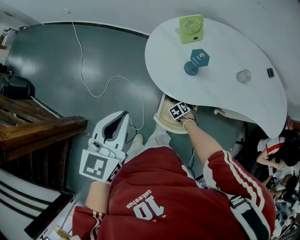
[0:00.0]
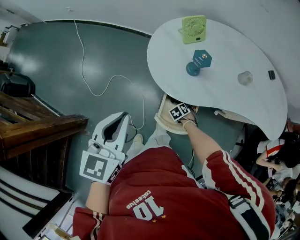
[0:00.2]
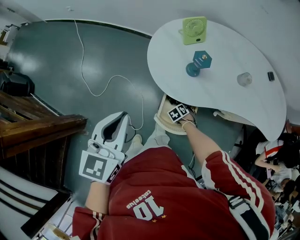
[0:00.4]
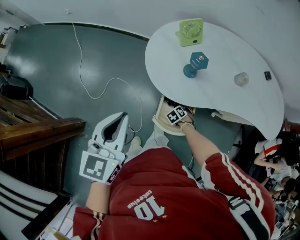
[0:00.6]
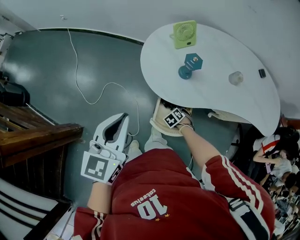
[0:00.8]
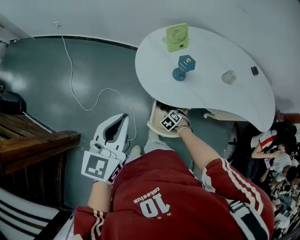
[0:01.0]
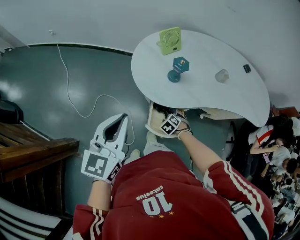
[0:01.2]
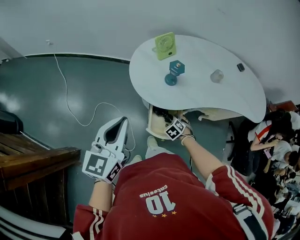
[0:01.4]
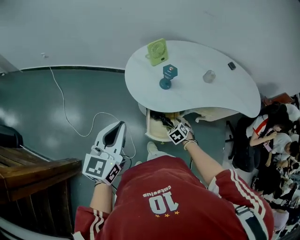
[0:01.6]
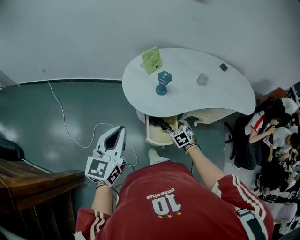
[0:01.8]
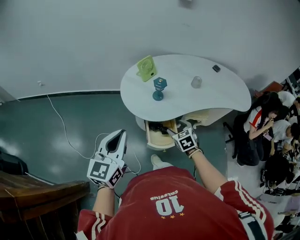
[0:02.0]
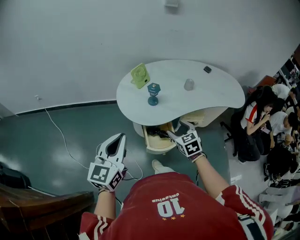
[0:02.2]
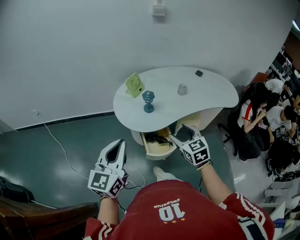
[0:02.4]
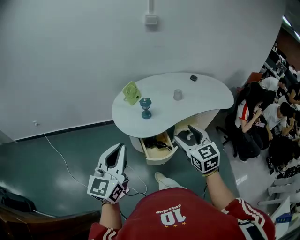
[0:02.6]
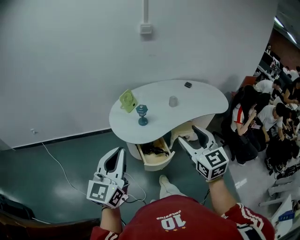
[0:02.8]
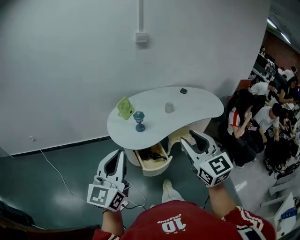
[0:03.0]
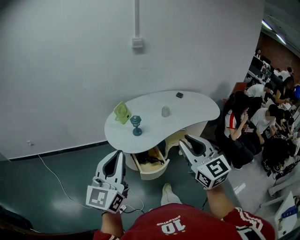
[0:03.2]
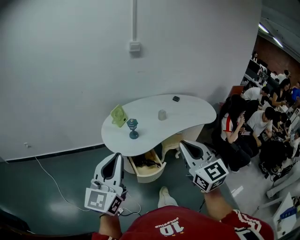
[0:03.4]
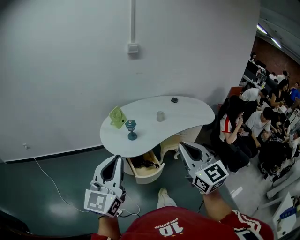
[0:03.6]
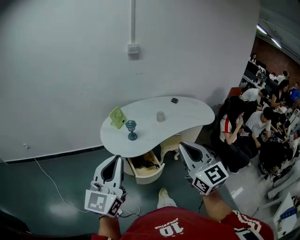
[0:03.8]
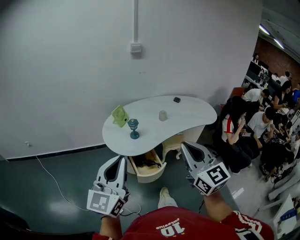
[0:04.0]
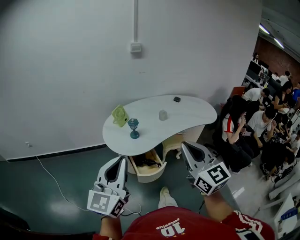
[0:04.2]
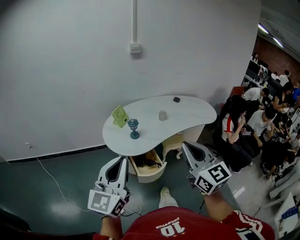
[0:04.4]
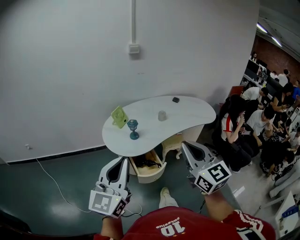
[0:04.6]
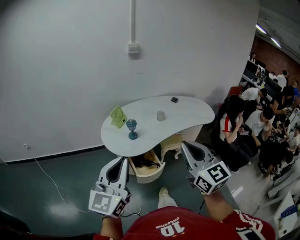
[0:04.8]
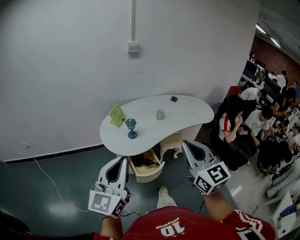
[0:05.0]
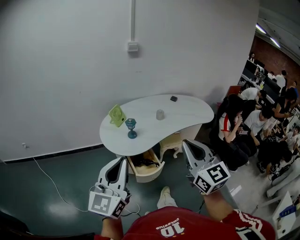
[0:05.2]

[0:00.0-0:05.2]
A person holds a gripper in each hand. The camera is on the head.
0:00.0 to 0:01.8: The right gripper goes roughly 25 cm upward, and turns by some 30 degrees.
0:01.8 to 0:03.4: The left gripper shifts about 20 cm upward and backward, and rotates about 30 degrees, while the right gripper travels upward and backward by some 50 cm, tips its fingers upward by about 60 degrees, and closes its fingers.
0:03.4 to 0:05.2: There are only small adjustments of the grippers.

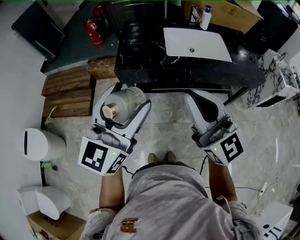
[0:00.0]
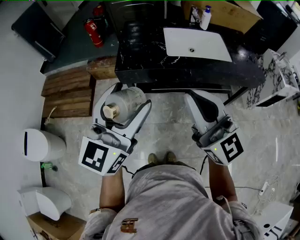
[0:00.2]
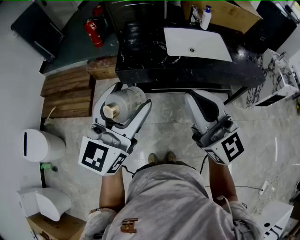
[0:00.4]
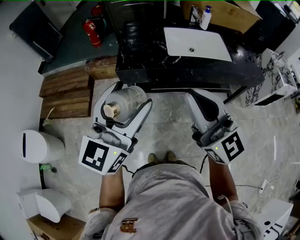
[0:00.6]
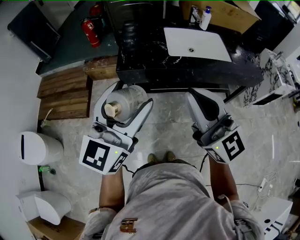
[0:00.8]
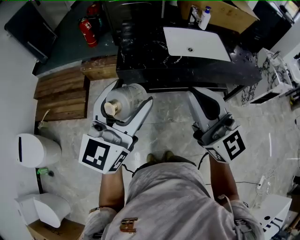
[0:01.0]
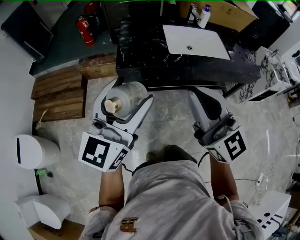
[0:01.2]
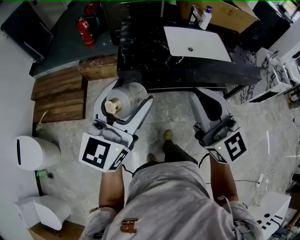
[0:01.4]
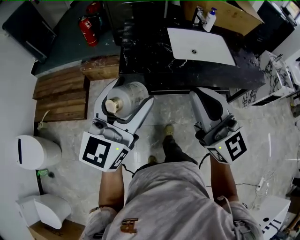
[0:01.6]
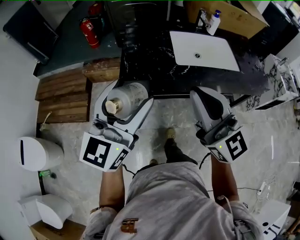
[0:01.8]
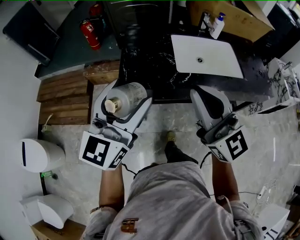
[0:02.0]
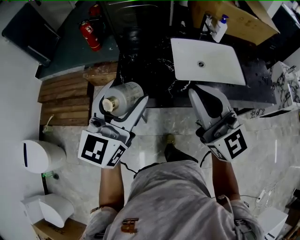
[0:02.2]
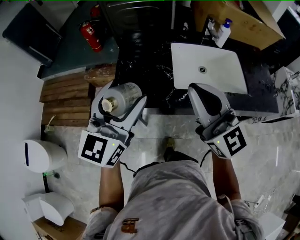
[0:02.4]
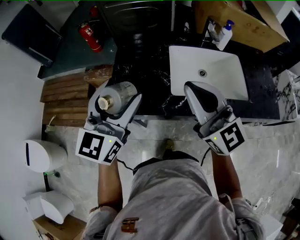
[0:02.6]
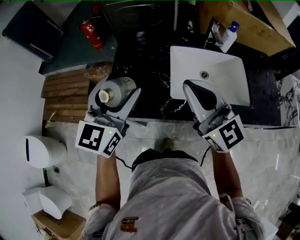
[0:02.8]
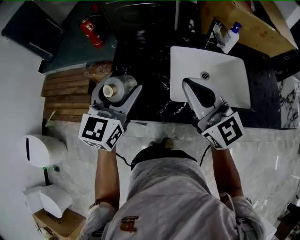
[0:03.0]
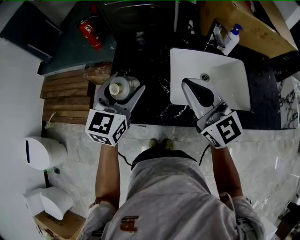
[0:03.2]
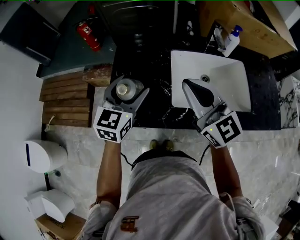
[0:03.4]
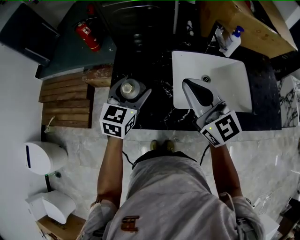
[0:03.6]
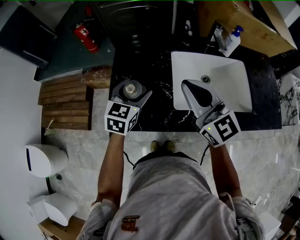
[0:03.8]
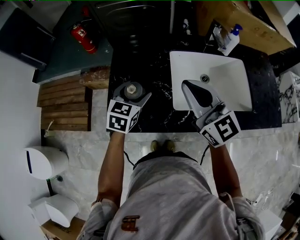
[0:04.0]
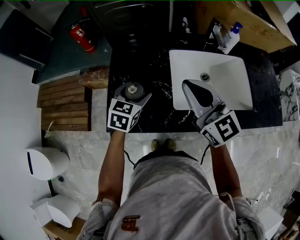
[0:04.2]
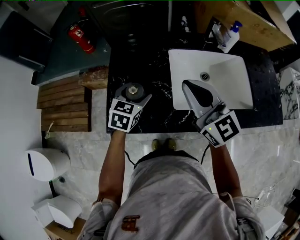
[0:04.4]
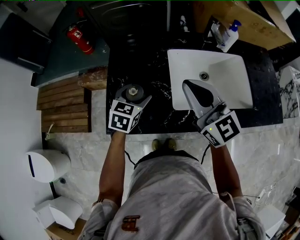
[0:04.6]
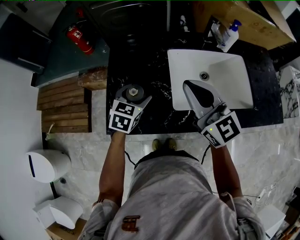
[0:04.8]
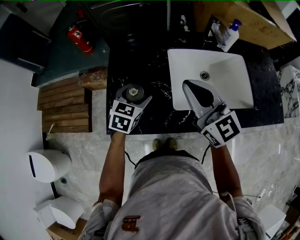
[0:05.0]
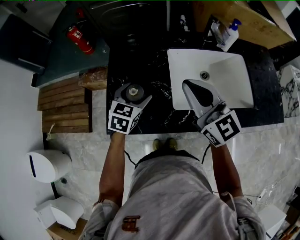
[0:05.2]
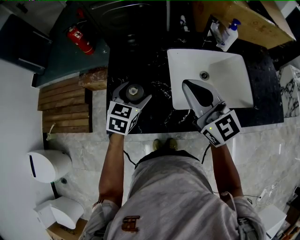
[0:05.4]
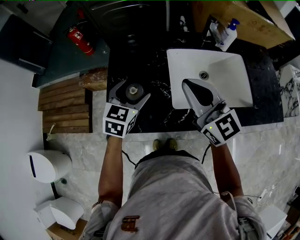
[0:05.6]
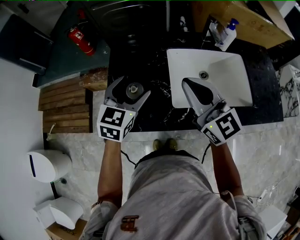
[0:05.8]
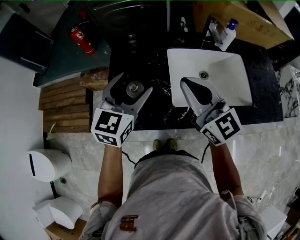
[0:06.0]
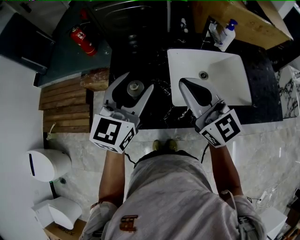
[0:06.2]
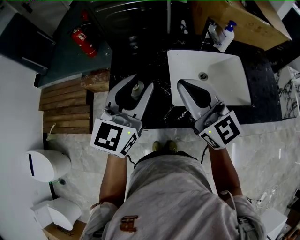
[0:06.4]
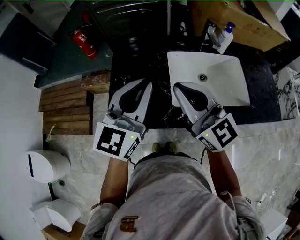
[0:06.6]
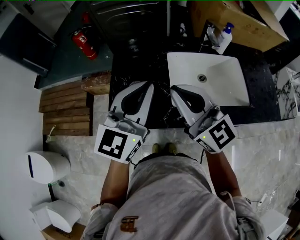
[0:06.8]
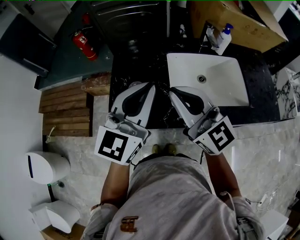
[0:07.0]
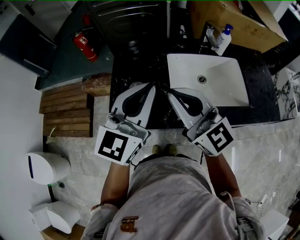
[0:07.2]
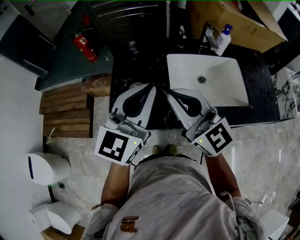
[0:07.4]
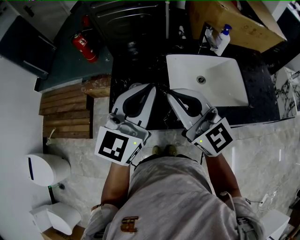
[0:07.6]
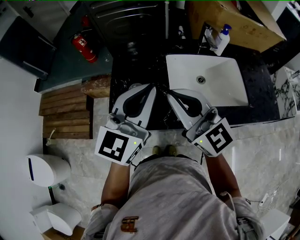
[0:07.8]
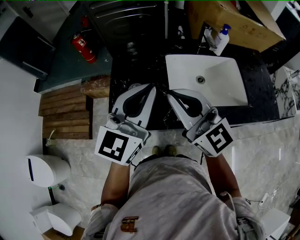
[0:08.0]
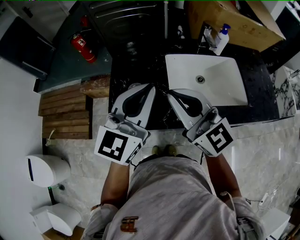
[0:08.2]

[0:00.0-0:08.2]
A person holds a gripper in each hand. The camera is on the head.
0:00.0 to 0:01.6: The right gripper heads to the left, covering roughly 5 cm; the left gripper moves to the left and forward, approximately 10 cm.
0:01.6 to 0:03.2: The grippers both shift forward by about 35 cm. The left gripper swivels some 20 degrees.
0:03.2 to 0:05.0: The right gripper shifts by about 5 cm. The left gripper goes about 15 cm downward, and rotates some 30 degrees.
0:05.0 to 0:06.6: The right gripper moves backward, roughly 5 cm. The left gripper moves upward, about 25 cm, angles its fingers upward, by approximately 40 degrees, and closes its fingers.
0:06.6 to 0:08.2: There are only small adjustments of the grippers.

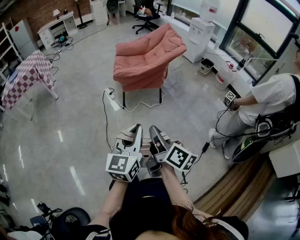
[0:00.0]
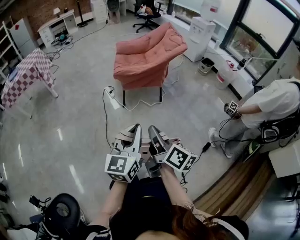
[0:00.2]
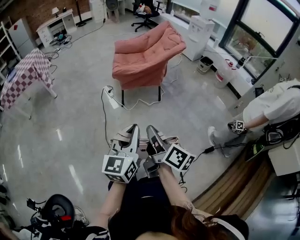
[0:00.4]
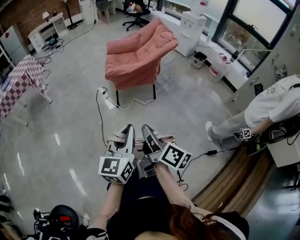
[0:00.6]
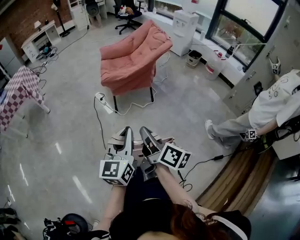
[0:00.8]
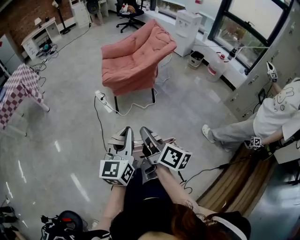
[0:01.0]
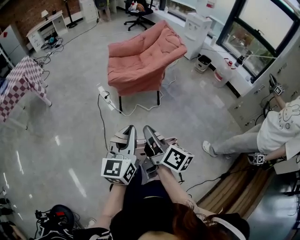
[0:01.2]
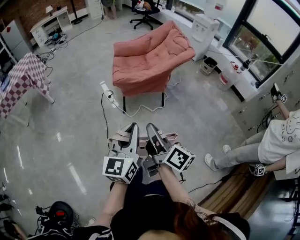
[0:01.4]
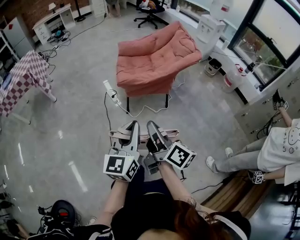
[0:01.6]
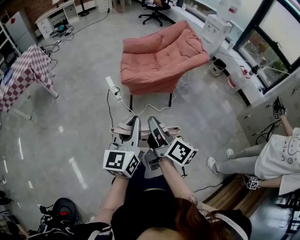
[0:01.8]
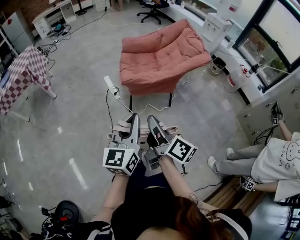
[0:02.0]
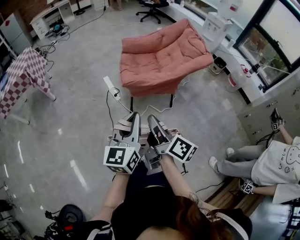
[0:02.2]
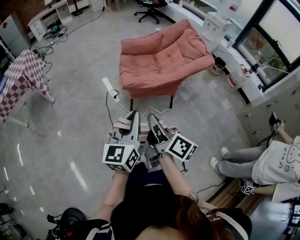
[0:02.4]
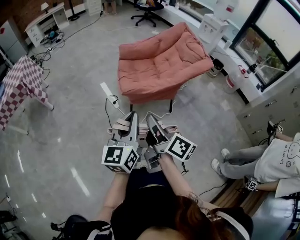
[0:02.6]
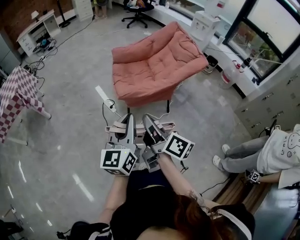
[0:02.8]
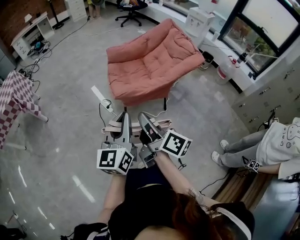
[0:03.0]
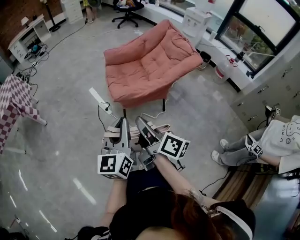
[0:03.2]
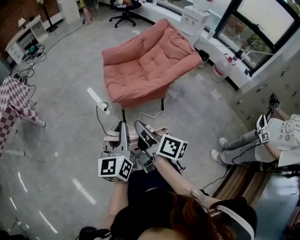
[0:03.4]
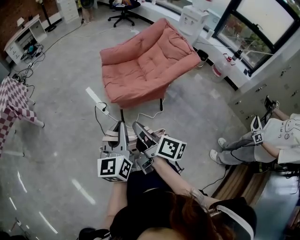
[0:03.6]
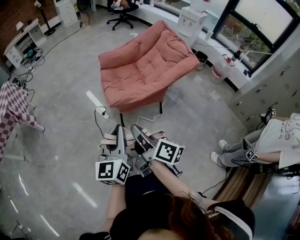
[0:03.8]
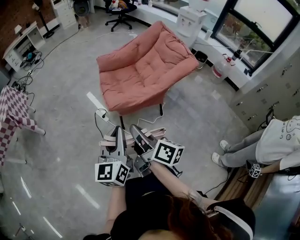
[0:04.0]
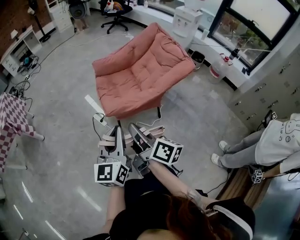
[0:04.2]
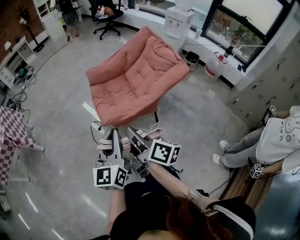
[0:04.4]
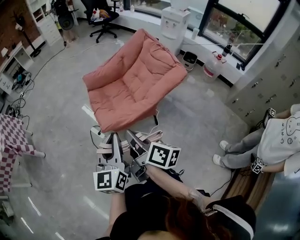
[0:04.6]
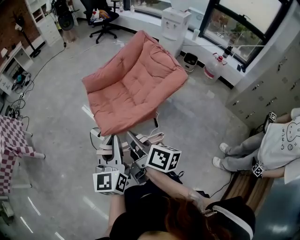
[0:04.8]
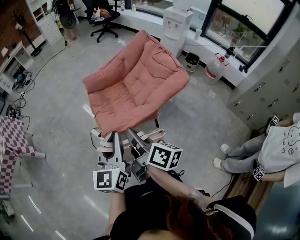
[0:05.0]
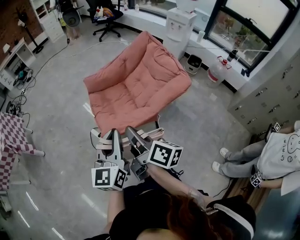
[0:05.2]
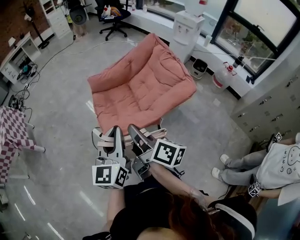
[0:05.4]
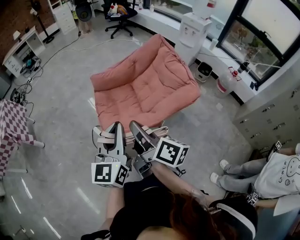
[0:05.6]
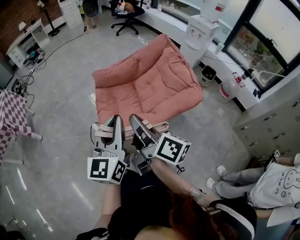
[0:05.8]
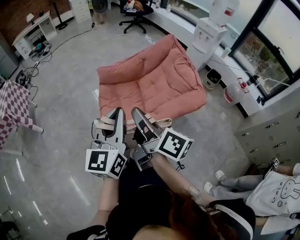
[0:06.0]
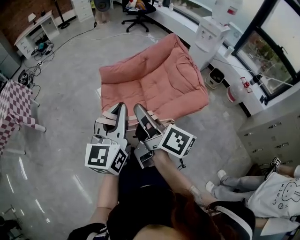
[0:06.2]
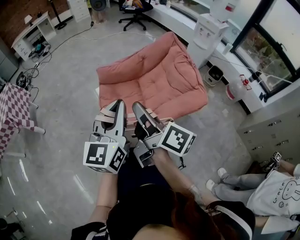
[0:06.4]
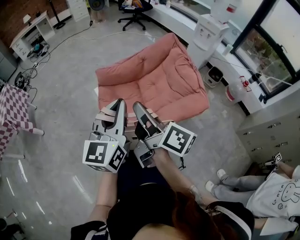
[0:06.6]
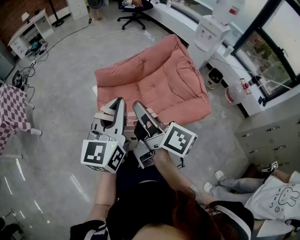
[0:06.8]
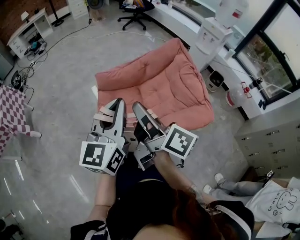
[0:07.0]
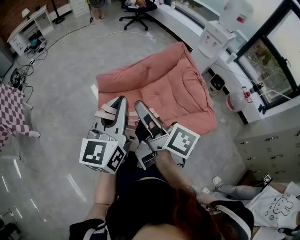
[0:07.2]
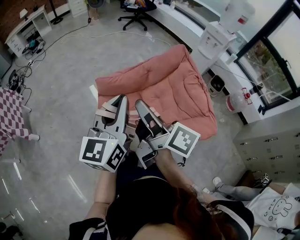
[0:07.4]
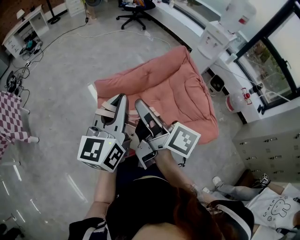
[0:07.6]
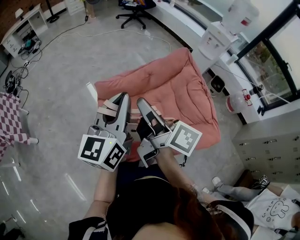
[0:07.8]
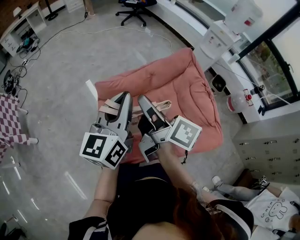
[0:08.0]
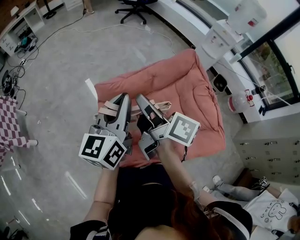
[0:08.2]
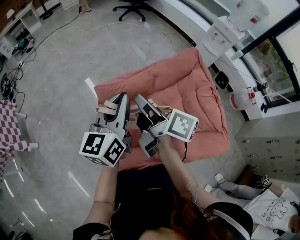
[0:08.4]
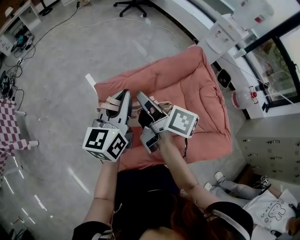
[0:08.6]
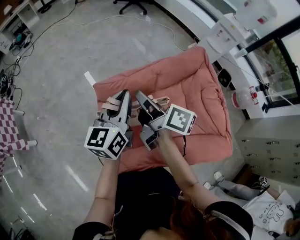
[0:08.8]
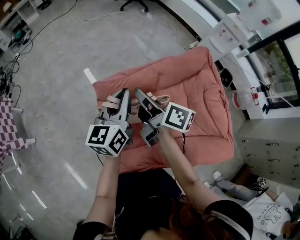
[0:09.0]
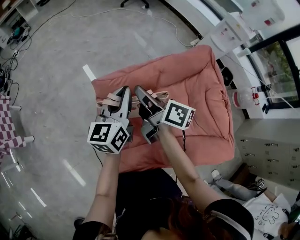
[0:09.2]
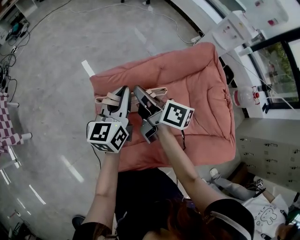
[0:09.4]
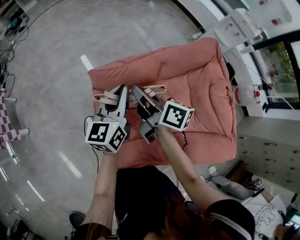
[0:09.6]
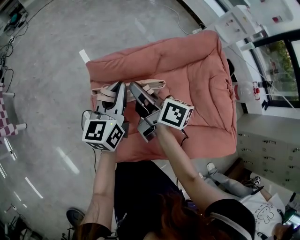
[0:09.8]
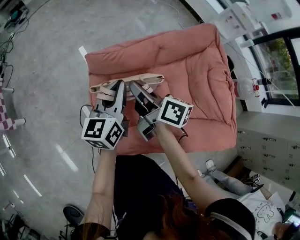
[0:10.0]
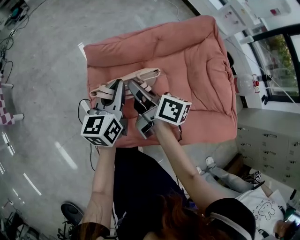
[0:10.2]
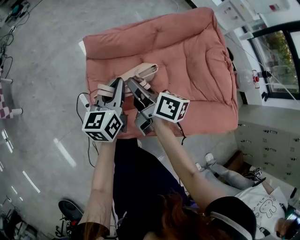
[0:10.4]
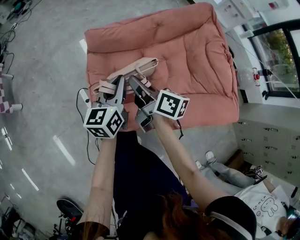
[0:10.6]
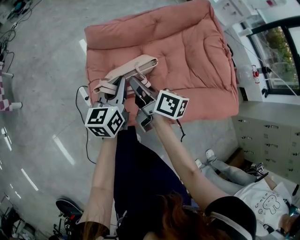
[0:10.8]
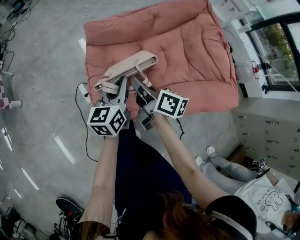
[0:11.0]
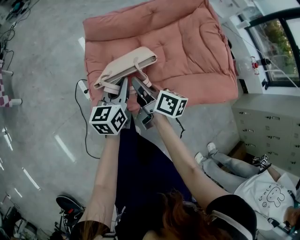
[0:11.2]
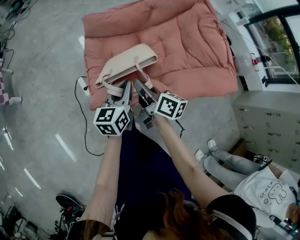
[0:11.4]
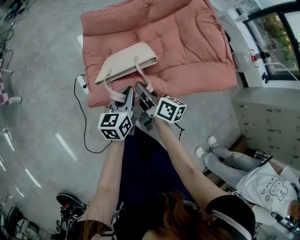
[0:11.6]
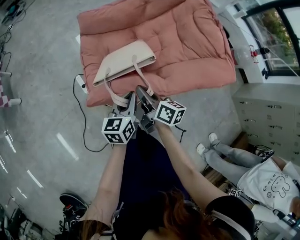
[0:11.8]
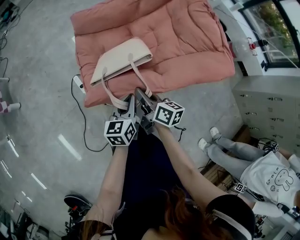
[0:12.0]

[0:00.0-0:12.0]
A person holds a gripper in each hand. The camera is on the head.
0:00.0 to 0:01.6: Both grippers move forward and to the left, roughly 25 cm.
0:01.6 to 0:03.0: The two grippers go roughly 25 cm forward and to the left.
0:03.0 to 0:04.4: The grippers both shift forward and to the right by some 15 cm.
0:04.4 to 0:06.0: Both grippers move forward and to the right, roughly 25 cm.
0:06.0 to 0:07.6: The two grippers go about 30 cm forward.
0:07.6 to 0:09.0: The grippers both shift forward and downward by about 30 cm.
0:09.0 to 0:10.4: Both grippers travel together backward and downward, about 25 cm.
0:10.4 to 0:12.0: The grippers both shift backward and downward by about 30 cm.
